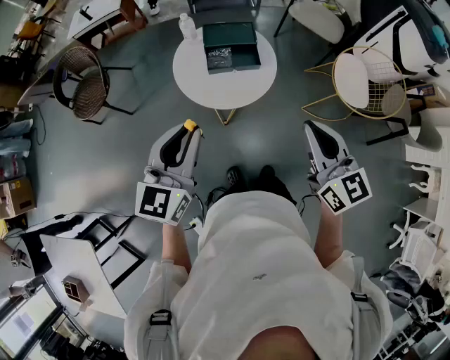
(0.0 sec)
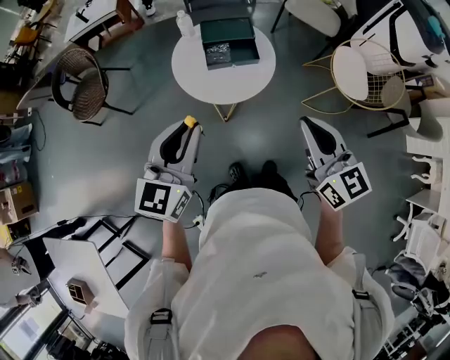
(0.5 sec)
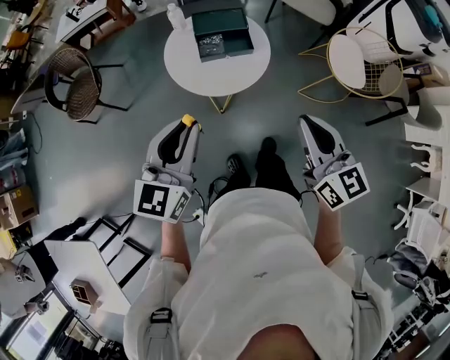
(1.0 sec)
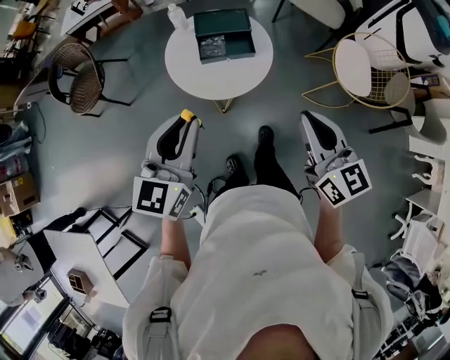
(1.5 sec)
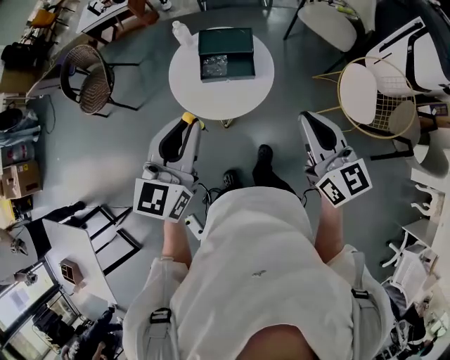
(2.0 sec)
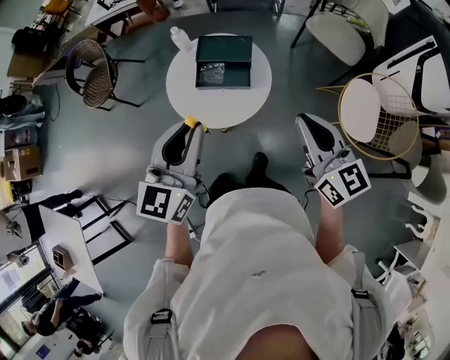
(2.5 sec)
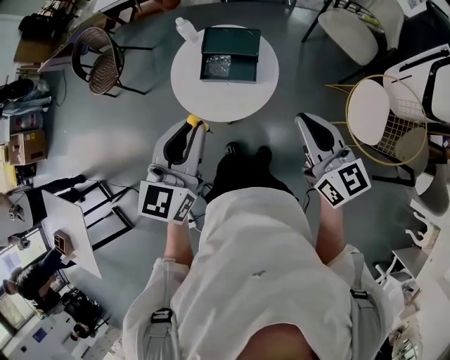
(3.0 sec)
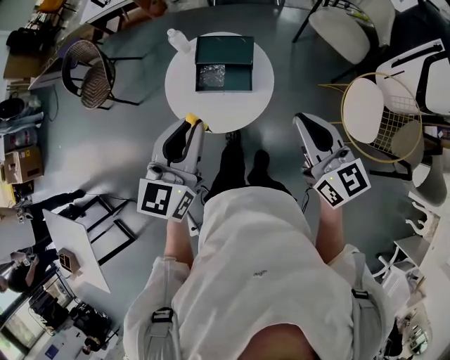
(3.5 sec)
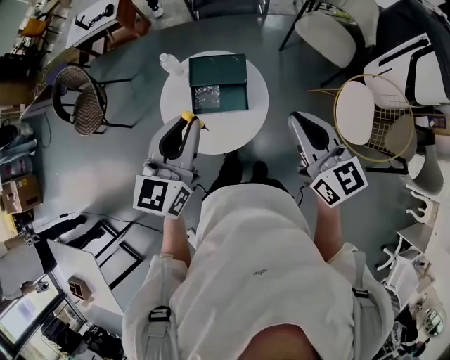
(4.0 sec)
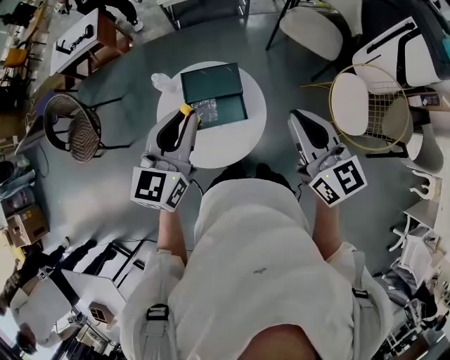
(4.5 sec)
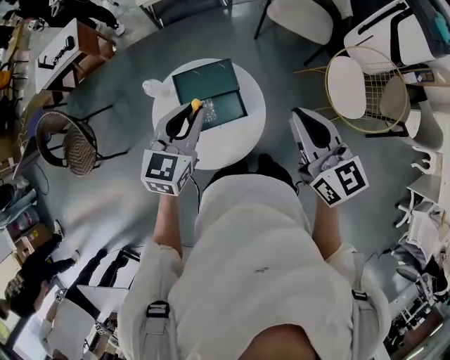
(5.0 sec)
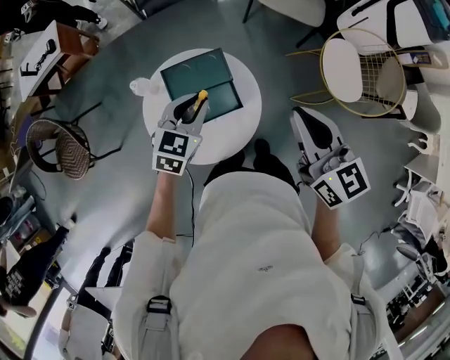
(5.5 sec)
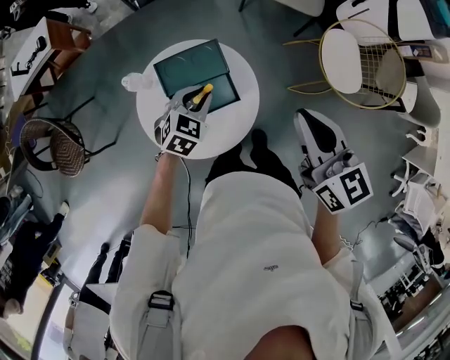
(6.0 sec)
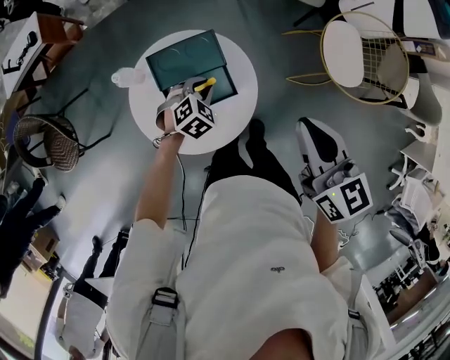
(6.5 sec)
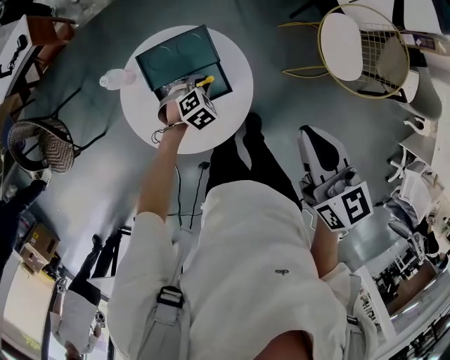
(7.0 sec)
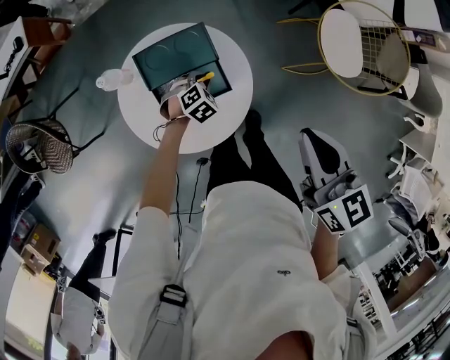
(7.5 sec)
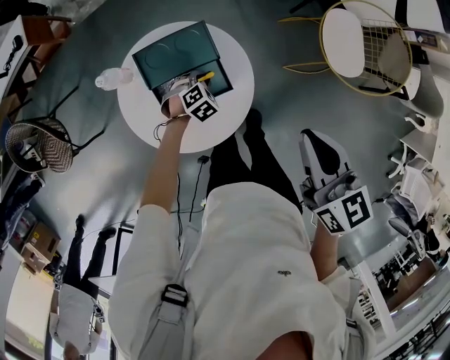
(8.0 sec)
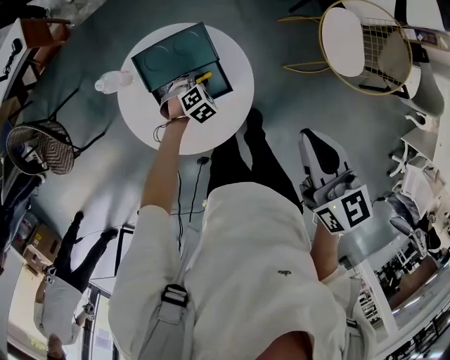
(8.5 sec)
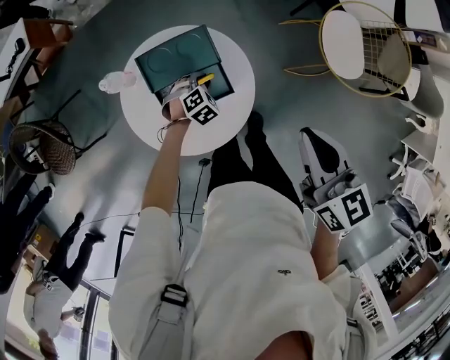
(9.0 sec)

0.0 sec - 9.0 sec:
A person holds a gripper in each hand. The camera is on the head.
0.0 sec - 2.0 sec: The right gripper goes approximately 15 cm forward and to the right, while the left gripper moves to the right and forward, some 15 cm.
2.0 sec - 4.5 sec: Both grippers move forward, about 20 cm.
4.5 sec - 7.0 sec: The left gripper moves downward, about 40 cm, and tilts its fingers approximately 60 degrees downward; the right gripper travels downward by roughly 10 cm, and turns by approximately 20 degrees.
7.0 sec - 9.0 sec: The grippers stay close to where they were, moving slightly.

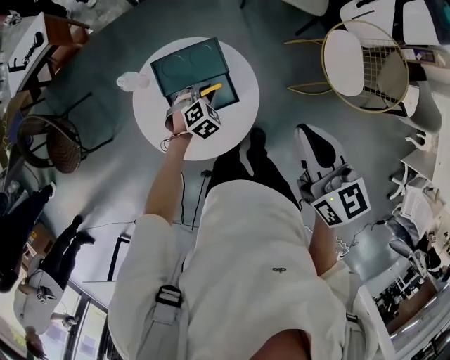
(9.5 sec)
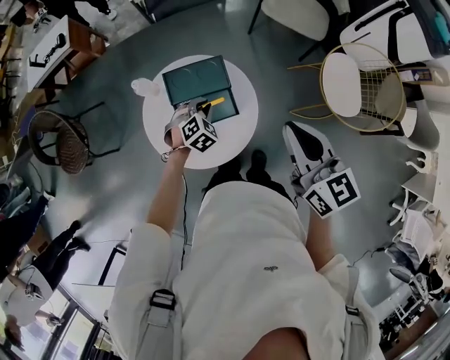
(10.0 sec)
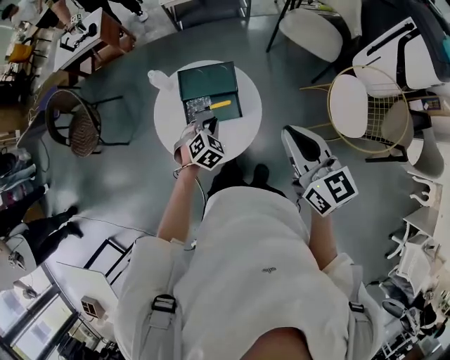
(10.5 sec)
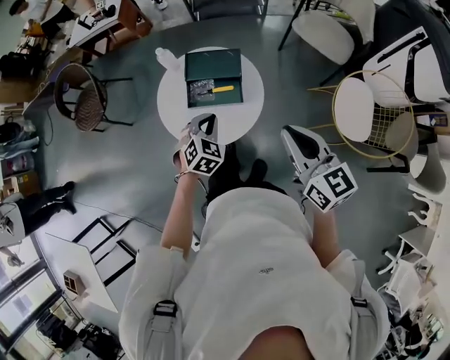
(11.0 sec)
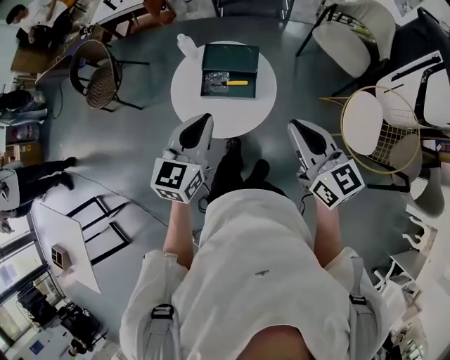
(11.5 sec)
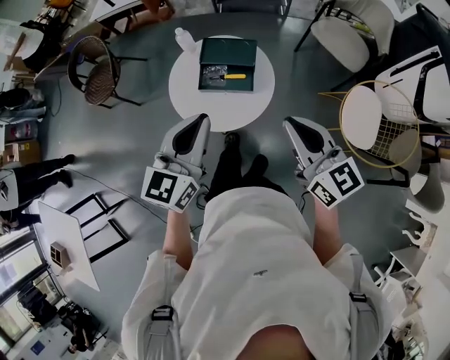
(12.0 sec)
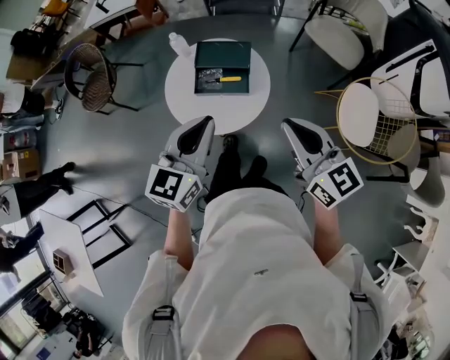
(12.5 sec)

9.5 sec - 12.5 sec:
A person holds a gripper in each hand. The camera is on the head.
9.5 sec - 11.0 sec: The left gripper moves roughly 20 cm, and rotates roughly 30 degrees. Meanwhile the right gripper shifts by some 10 cm, and rotates about 20 degrees.
11.0 sec - 12.5 sec: The right gripper shifts by about 5 cm. The left gripper goes about 25 cm upward and backward, and points its fingers roughly 30 degrees further upward.

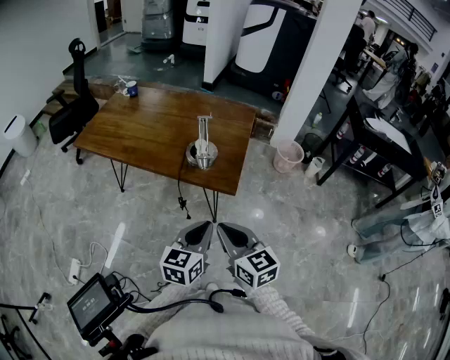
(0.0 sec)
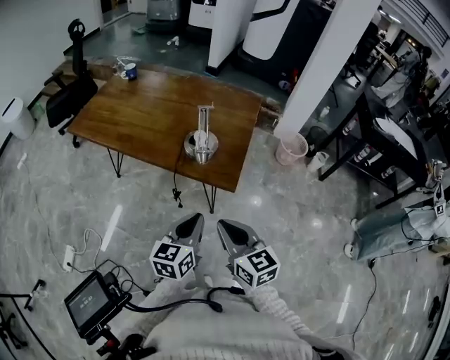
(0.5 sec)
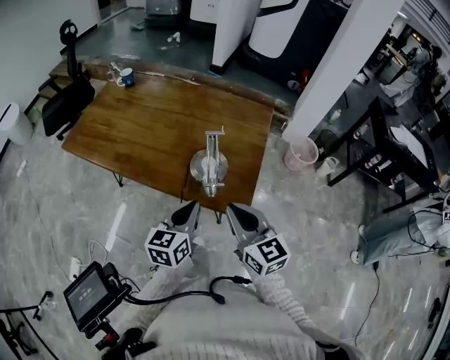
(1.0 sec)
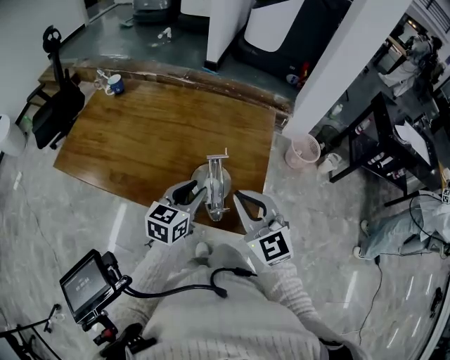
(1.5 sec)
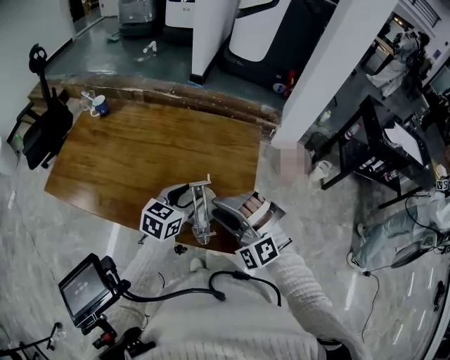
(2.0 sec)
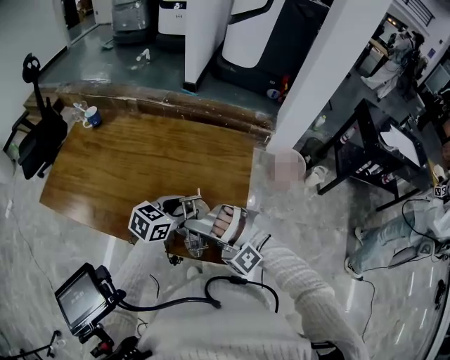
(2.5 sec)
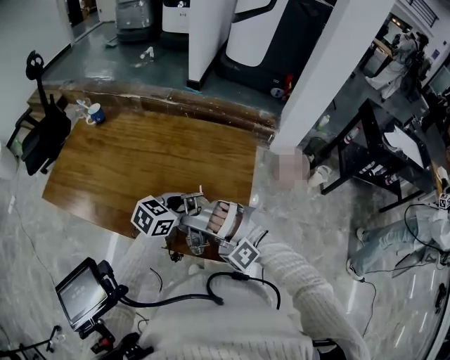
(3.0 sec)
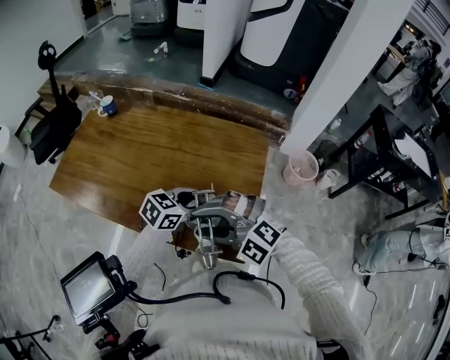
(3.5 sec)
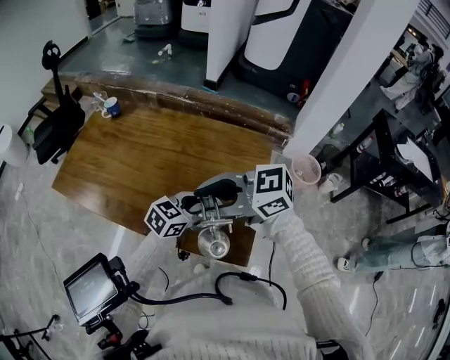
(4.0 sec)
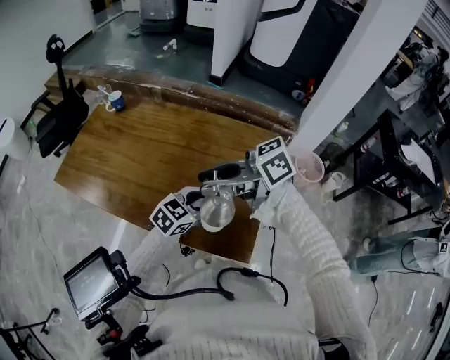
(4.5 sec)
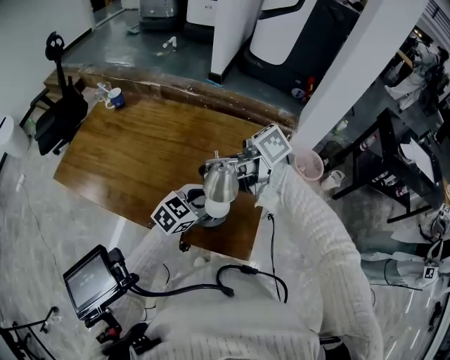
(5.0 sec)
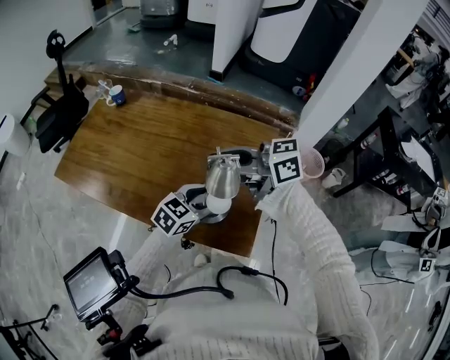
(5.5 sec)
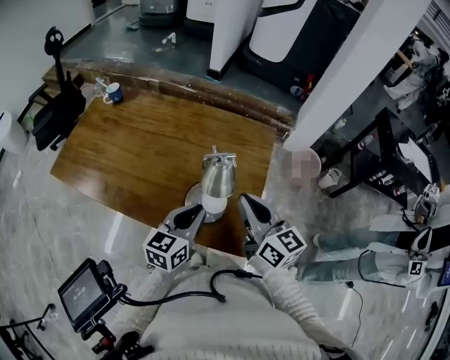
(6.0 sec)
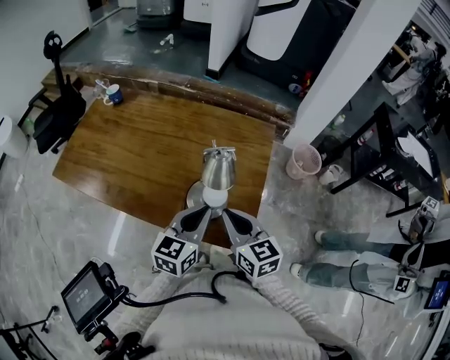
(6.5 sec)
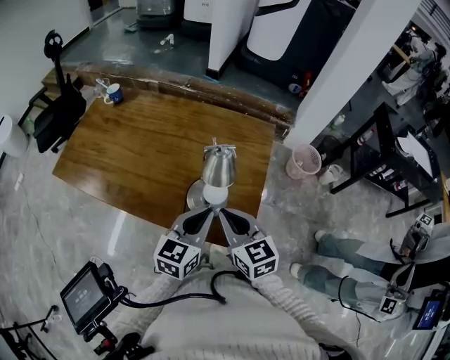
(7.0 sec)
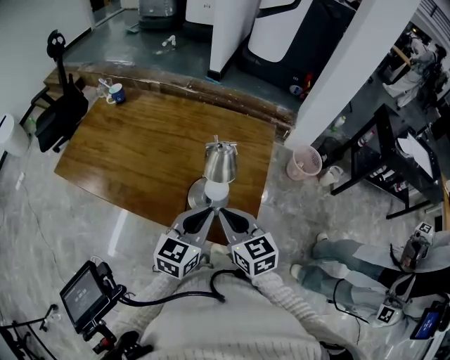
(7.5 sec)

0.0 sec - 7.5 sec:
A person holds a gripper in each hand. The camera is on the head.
0.0 sec - 2.0 sec: The grippers both shift forward by about 35 cm. The left gripper changes its angle by some 20 degrees, and opens its fingers. Meanwhile the right gripper twists roughly 90 degrees counterclockwise, seen from behind, and opens.
2.0 sec - 4.0 sec: The right gripper is displaced upward by roughly 10 cm, and rotates about 90 degrees.
4.0 sec - 5.5 sec: The right gripper moves about 5 cm, and turns by approximately 20 degrees.
5.5 sec - 7.5 sec: The right gripper travels downward by roughly 15 cm, changes its angle by about 60 degrees, and closes. The left gripper shifts by about 10 cm, changes its angle by approximately 30 degrees, and closes.

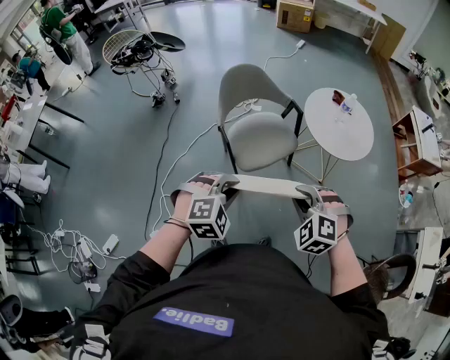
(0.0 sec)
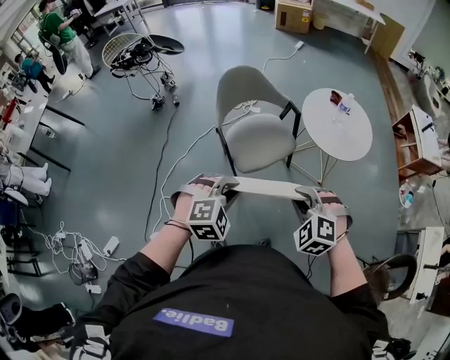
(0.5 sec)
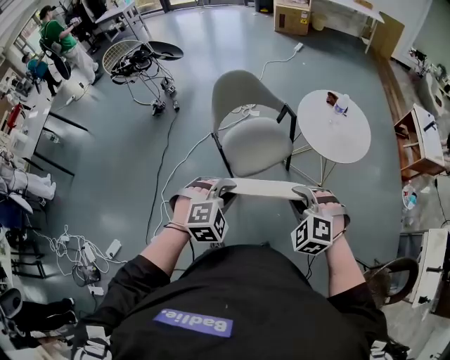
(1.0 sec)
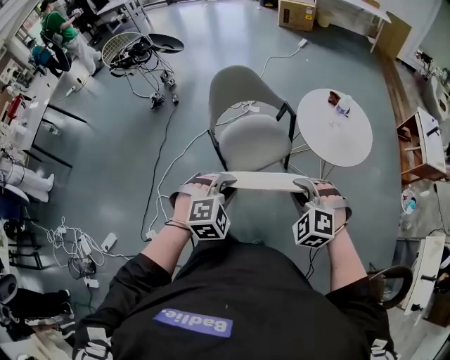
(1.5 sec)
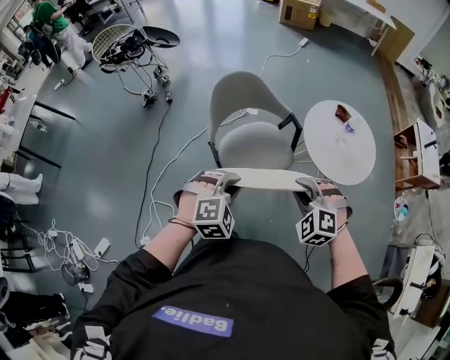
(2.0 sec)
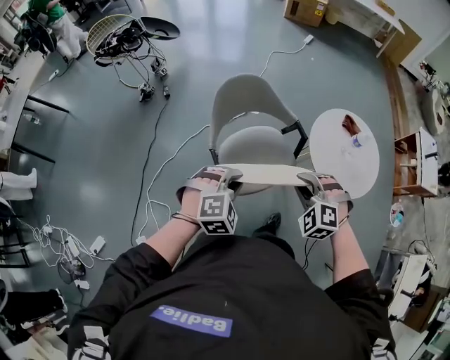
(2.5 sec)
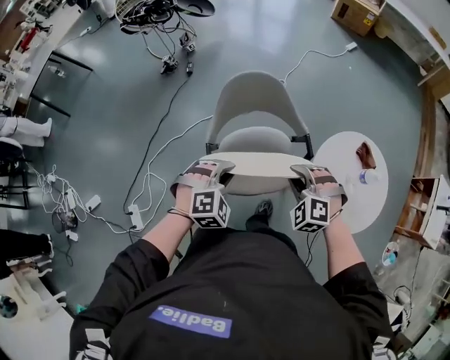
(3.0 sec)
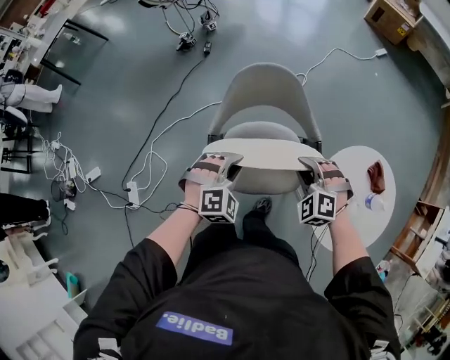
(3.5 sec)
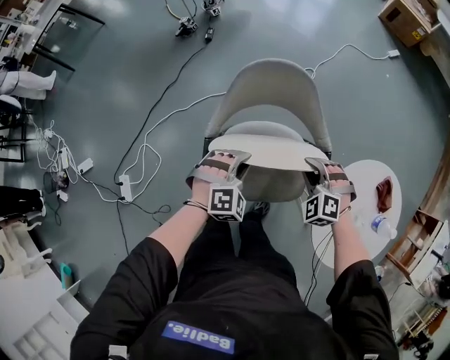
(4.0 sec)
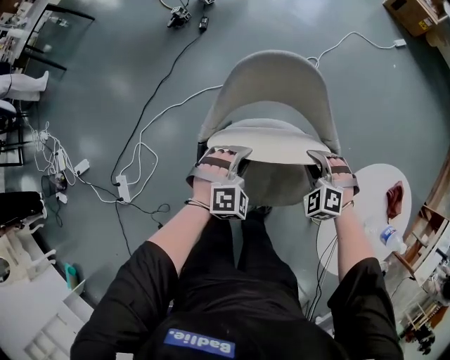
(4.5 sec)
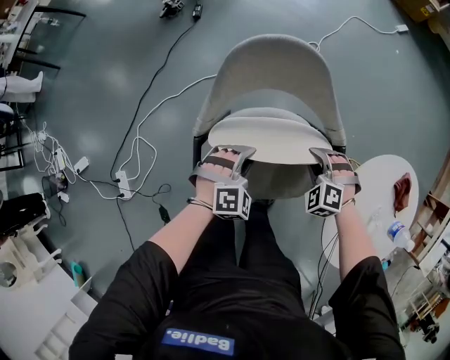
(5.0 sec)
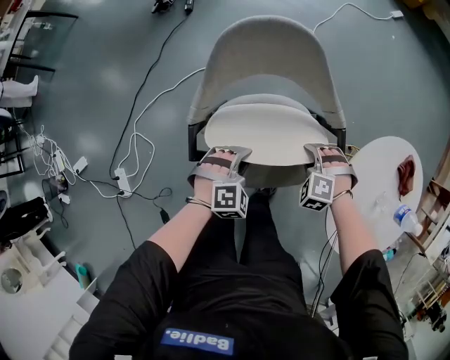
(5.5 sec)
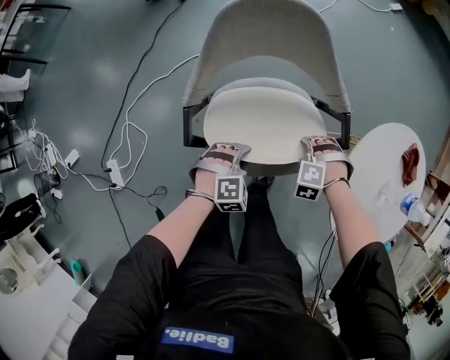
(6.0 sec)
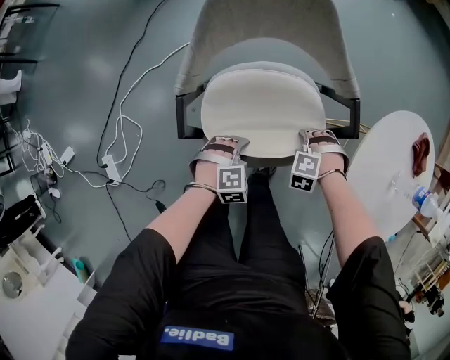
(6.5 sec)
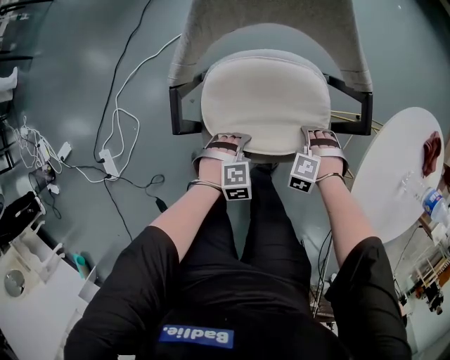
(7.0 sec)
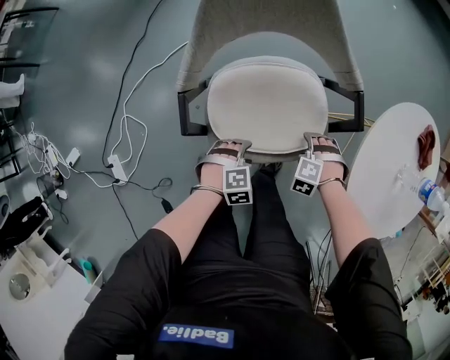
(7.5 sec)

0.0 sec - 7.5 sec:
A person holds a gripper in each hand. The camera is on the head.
0.0 sec - 2.0 sec: The grippers both shift forward by about 15 cm.
2.0 sec - 4.0 sec: The right gripper moves some 40 cm, and changes its angle by approximately 30 degrees, while the left gripper changes place by roughly 30 cm, and swivels some 30 degrees.
4.0 sec - 5.5 sec: The grippers both shift downward by roughly 15 cm.
5.5 sec - 7.5 sec: The grippers both shift downward by roughly 15 cm. The left gripper swivels approximately 20 degrees, and opens its fingers, while the right gripper opens its fingers.
